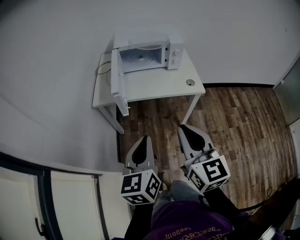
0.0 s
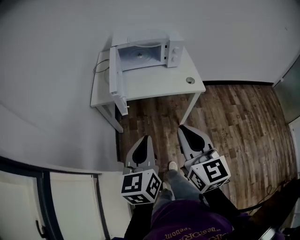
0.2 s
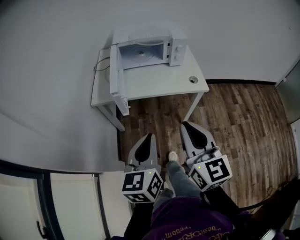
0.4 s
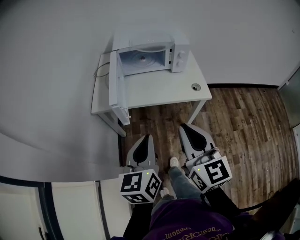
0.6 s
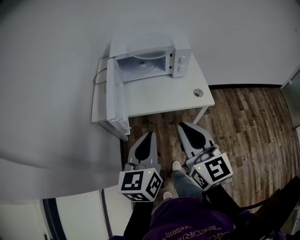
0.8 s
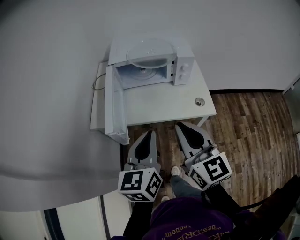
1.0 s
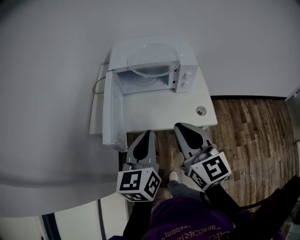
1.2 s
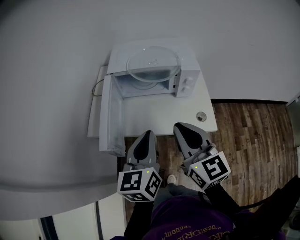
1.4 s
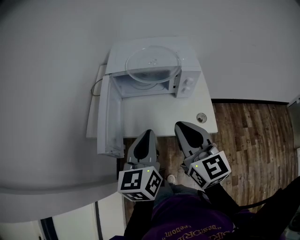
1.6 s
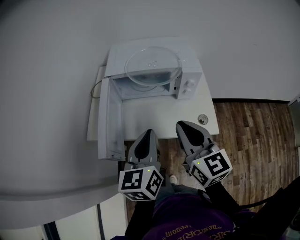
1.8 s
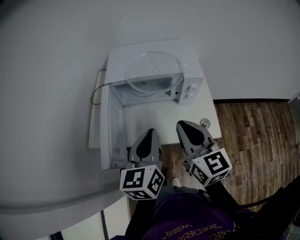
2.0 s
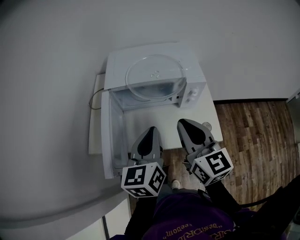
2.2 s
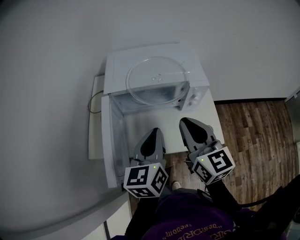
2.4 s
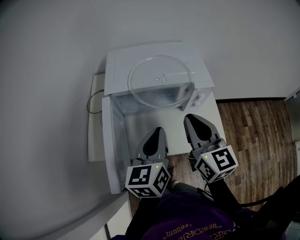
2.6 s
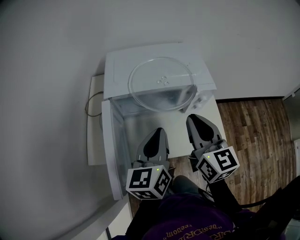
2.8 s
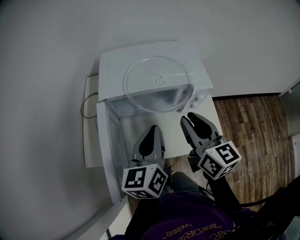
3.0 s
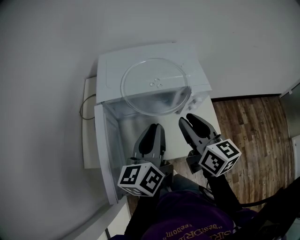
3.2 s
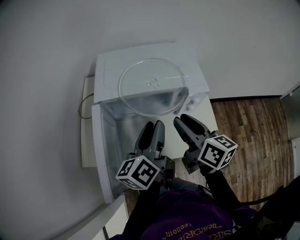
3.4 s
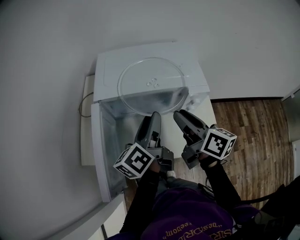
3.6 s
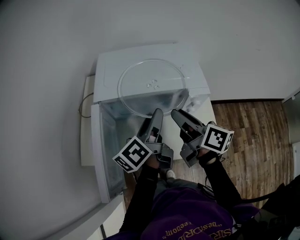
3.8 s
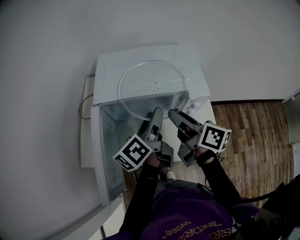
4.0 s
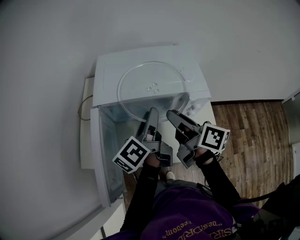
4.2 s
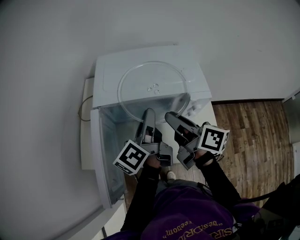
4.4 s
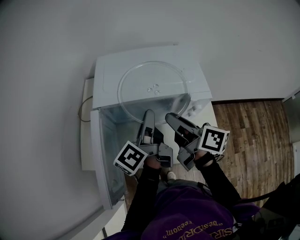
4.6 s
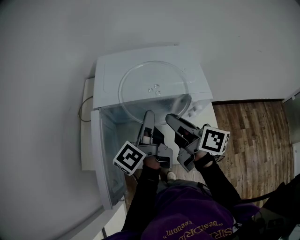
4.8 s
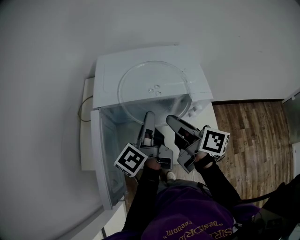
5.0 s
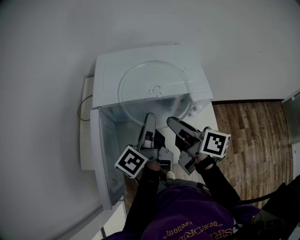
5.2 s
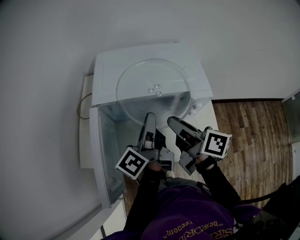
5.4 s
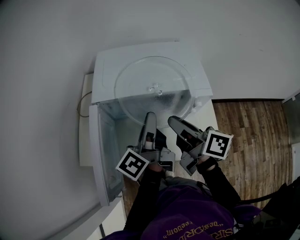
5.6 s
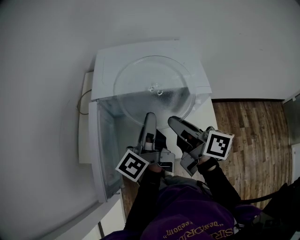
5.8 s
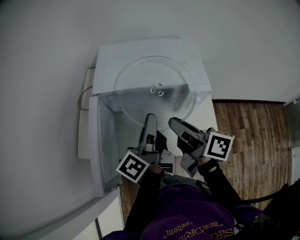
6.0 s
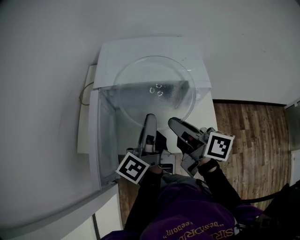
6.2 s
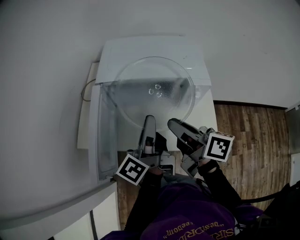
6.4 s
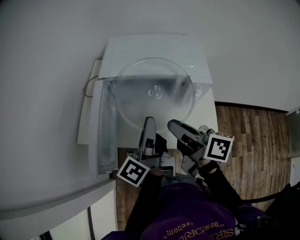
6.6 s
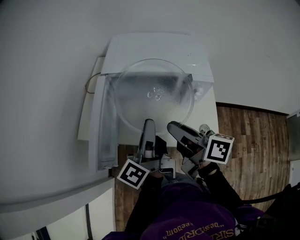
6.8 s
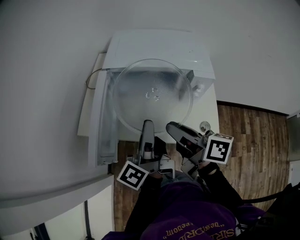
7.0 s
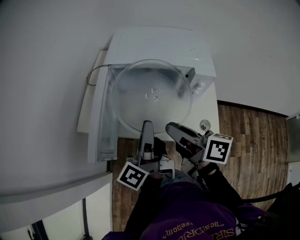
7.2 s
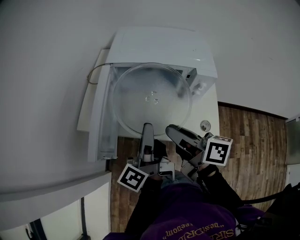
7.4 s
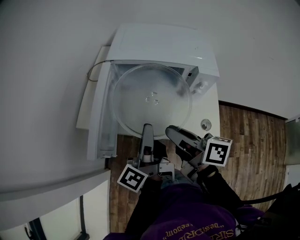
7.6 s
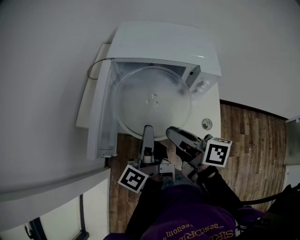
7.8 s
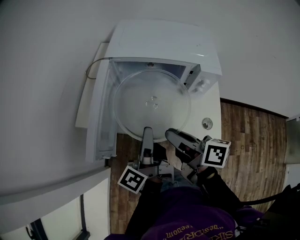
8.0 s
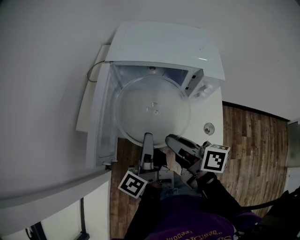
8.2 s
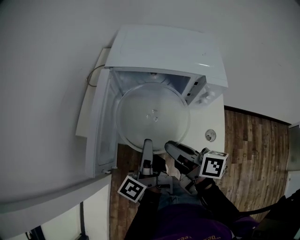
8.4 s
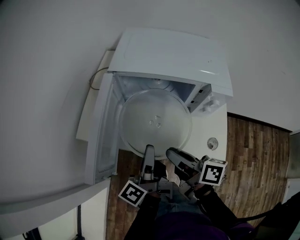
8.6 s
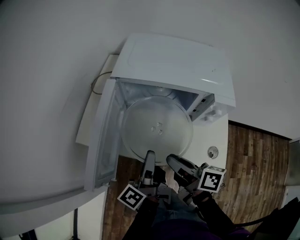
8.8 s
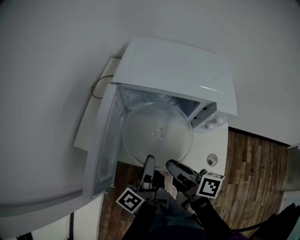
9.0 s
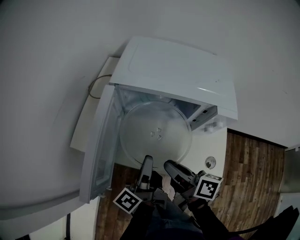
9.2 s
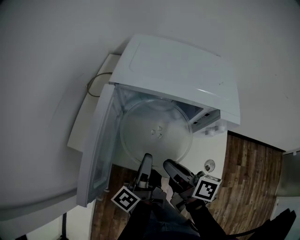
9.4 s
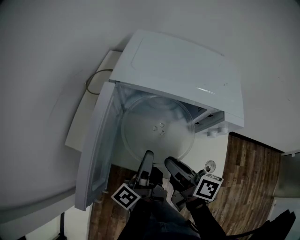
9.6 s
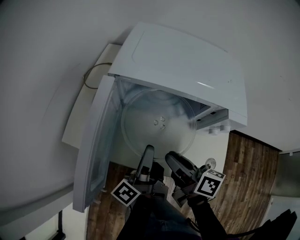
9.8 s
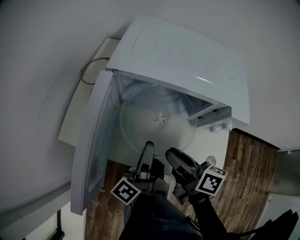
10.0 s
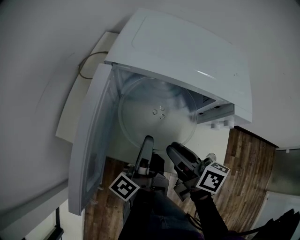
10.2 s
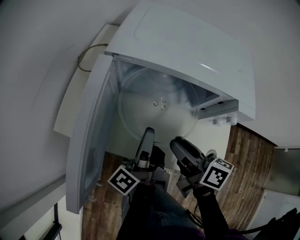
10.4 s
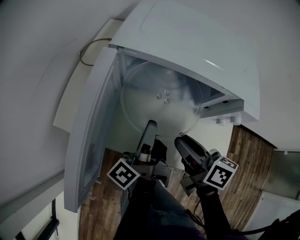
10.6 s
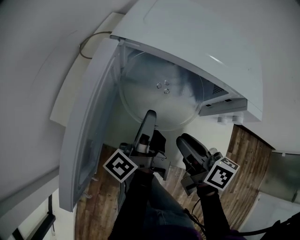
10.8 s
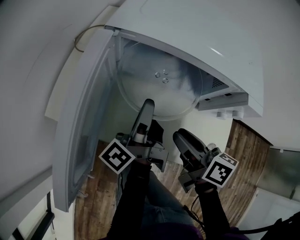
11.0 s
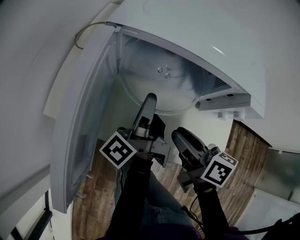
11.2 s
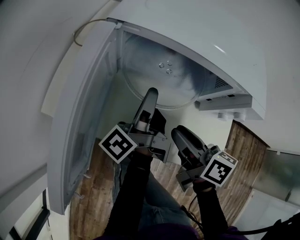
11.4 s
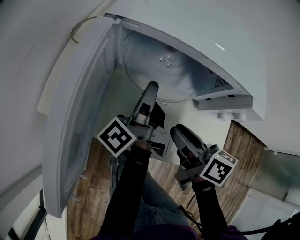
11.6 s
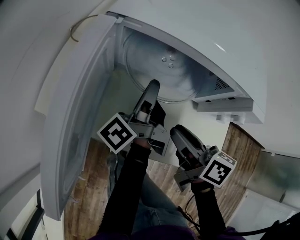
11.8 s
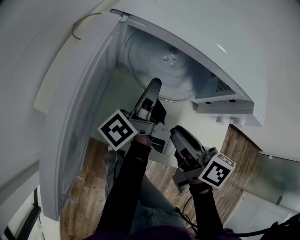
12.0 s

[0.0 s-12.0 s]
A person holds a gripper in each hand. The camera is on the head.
0.0 to 1.6 s: The two grippers go roughly 30 cm forward.
1.6 to 3.0 s: The grippers both shift forward by approximately 15 cm.
3.0 to 4.4 s: Both grippers travel together forward, some 10 cm. The left gripper turns by roughly 40 degrees, and opens its fingers. Meanwhile the right gripper swivels about 40 degrees.
4.4 to 6.0 s: Both grippers move backward, about 5 cm.
6.0 to 7.6 s: The grippers both shift backward and to the left by roughly 10 cm.
7.6 to 9.0 s: The two grippers go approximately 10 cm downward.
9.0 to 10.4 s: The two grippers go about 5 cm forward.
10.4 to 12.0 s: The left gripper is displaced forward by about 10 cm.

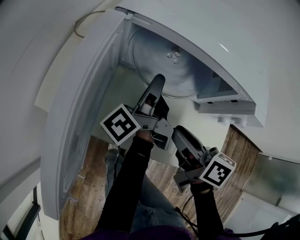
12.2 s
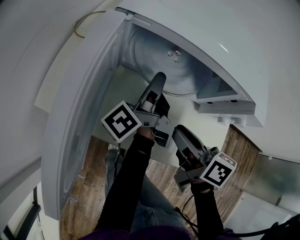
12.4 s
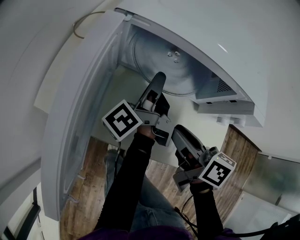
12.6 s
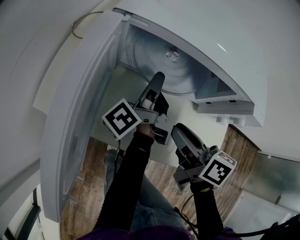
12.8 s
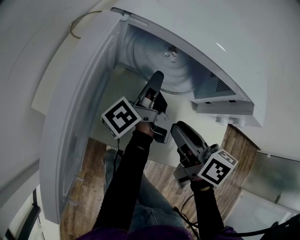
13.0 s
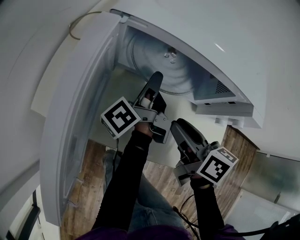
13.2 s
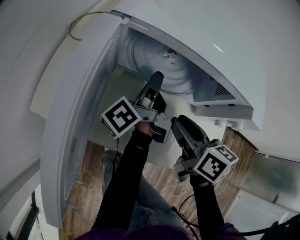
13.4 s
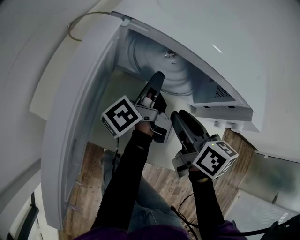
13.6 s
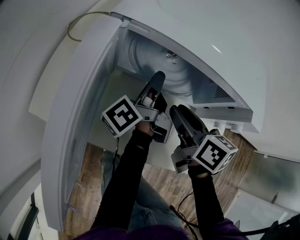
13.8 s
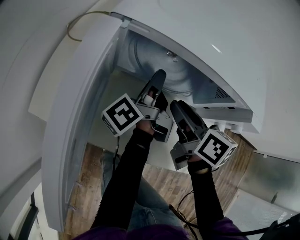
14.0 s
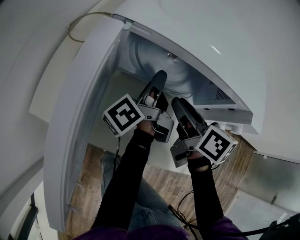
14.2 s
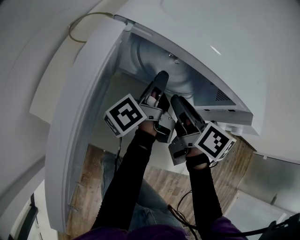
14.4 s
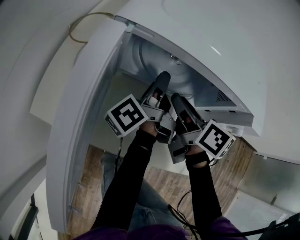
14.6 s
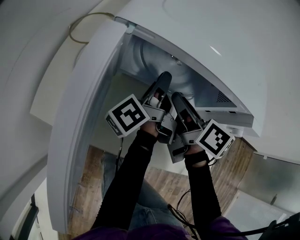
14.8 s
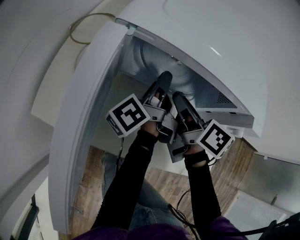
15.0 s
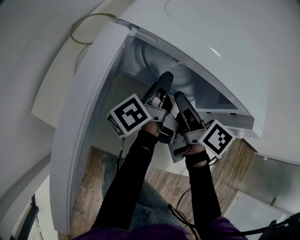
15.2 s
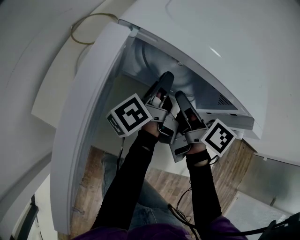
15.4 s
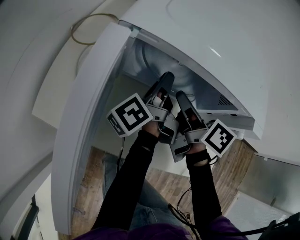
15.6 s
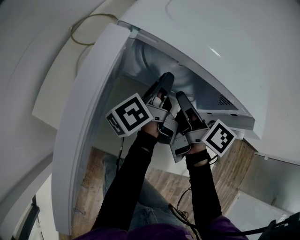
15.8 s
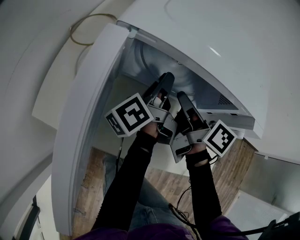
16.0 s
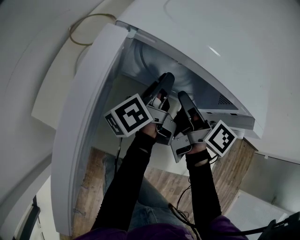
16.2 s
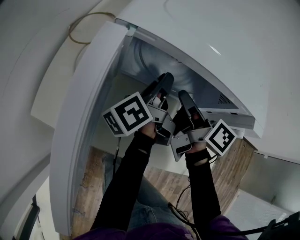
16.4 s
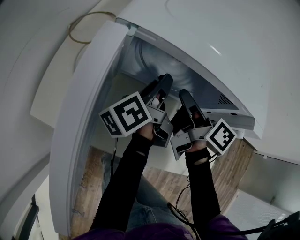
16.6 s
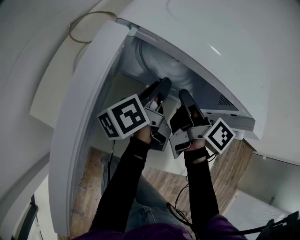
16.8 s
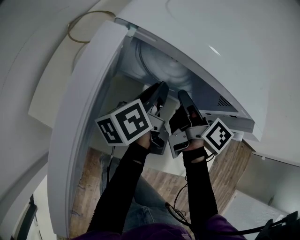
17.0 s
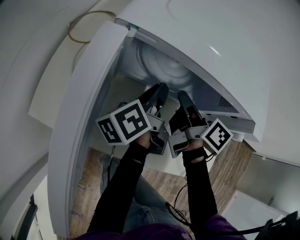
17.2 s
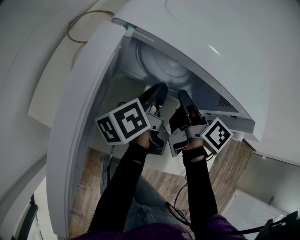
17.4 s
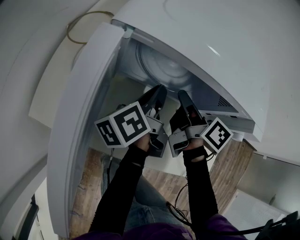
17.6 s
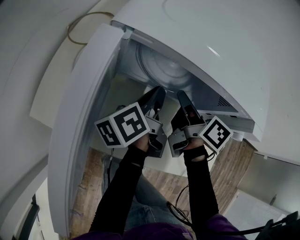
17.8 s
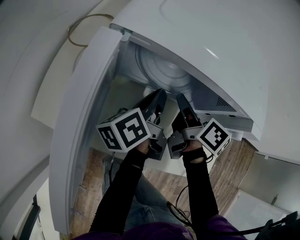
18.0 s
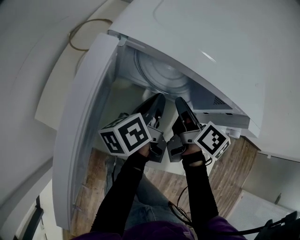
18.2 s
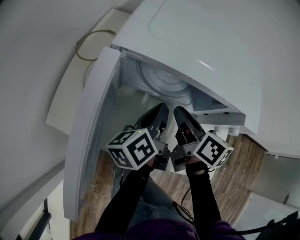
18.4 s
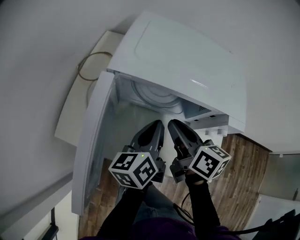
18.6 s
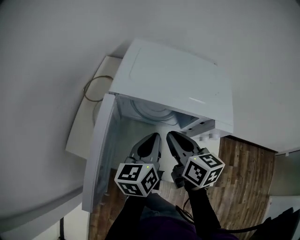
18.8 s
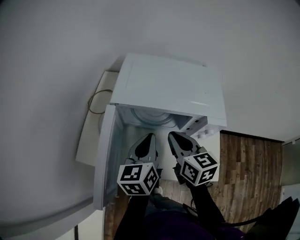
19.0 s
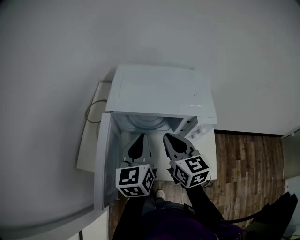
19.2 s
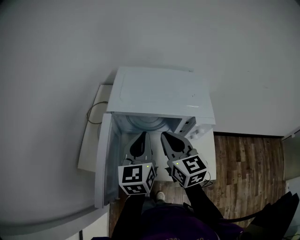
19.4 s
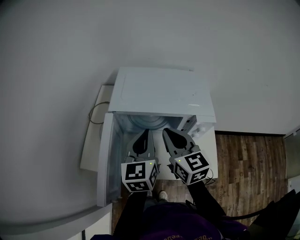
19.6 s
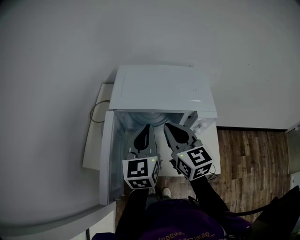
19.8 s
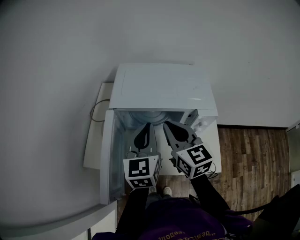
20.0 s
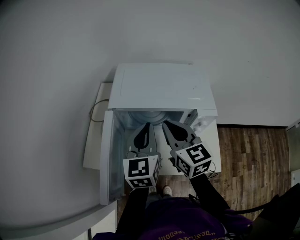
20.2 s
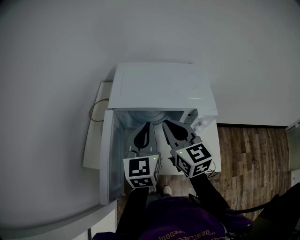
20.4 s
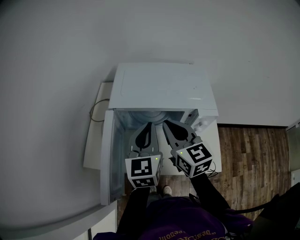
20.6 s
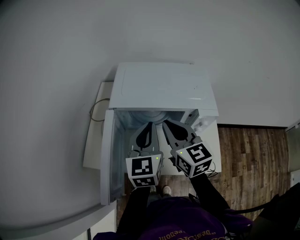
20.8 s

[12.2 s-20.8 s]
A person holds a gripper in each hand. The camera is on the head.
12.2 to 13.6 s: The right gripper travels forward by some 5 cm.
13.6 to 15.0 s: The right gripper goes about 5 cm forward.
15.0 to 16.6 s: The grippers move only a little.
16.6 to 18.0 s: The grippers make only small movements.
18.0 to 19.4 s: Both grippers travel together upward and backward, roughly 20 cm. The right gripper twists some 40 degrees counterclockwise, seen from behind, while the left gripper rolls clockwise, seen from behind, by some 60 degrees.
19.4 to 20.8 s: The grippers stay close to where they were, moving slightly.

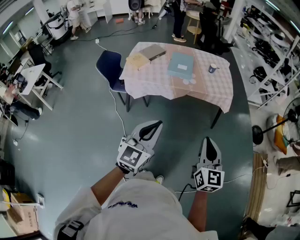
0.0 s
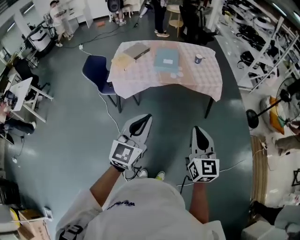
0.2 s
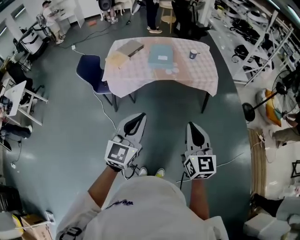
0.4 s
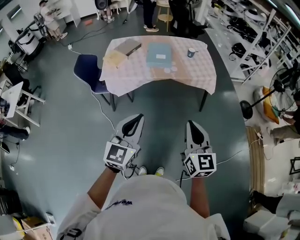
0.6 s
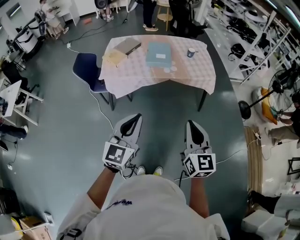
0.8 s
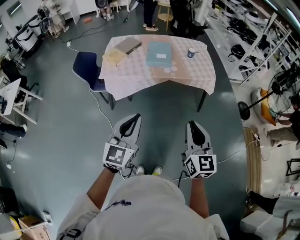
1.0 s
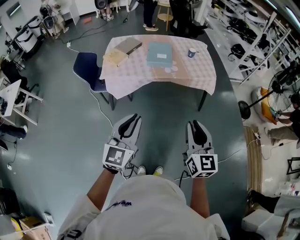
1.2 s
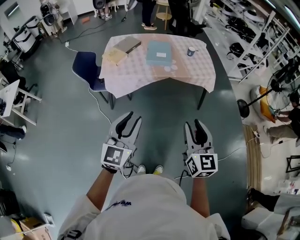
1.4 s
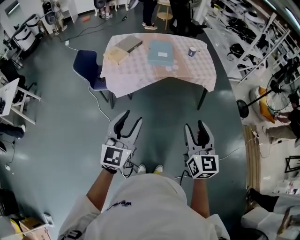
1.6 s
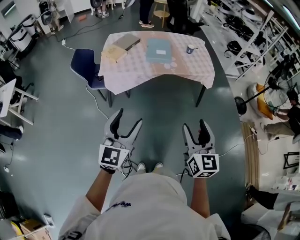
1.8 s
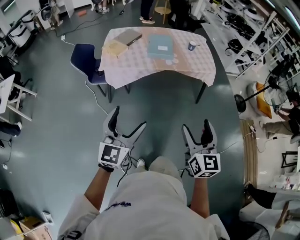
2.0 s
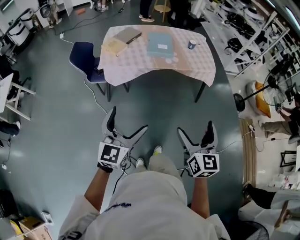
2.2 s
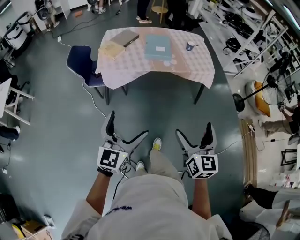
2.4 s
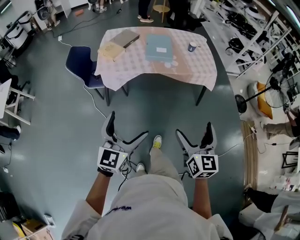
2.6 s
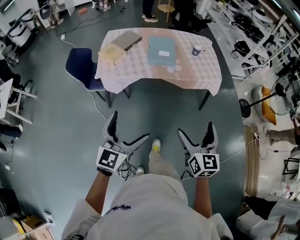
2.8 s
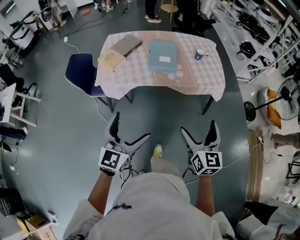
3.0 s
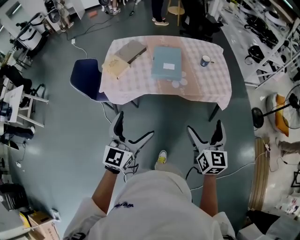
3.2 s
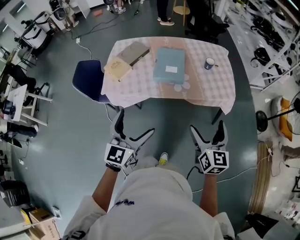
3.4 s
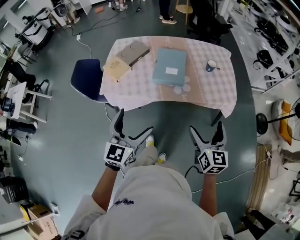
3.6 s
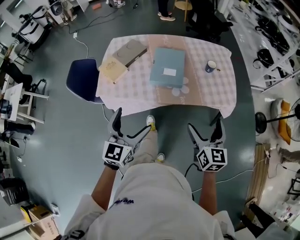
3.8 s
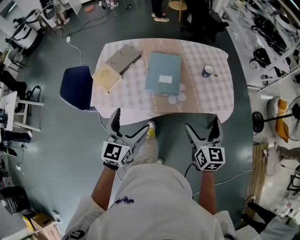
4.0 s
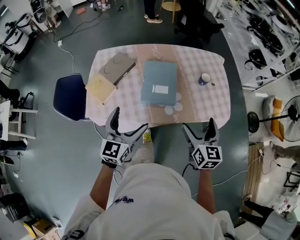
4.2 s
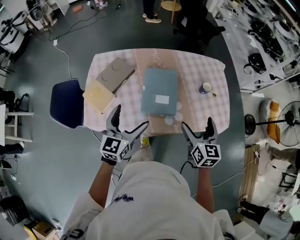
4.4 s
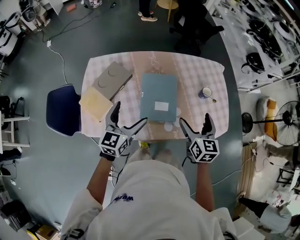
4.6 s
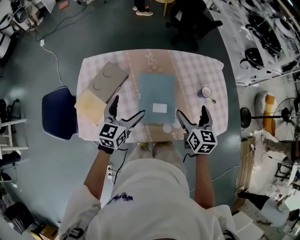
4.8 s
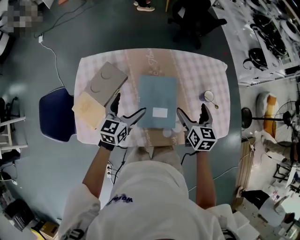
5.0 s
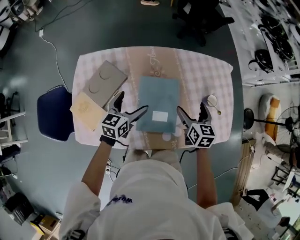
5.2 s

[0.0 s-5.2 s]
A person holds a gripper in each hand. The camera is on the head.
0.0 to 1.8 s: Both grippers move to the left, some 10 cm. The left gripper opens. The right gripper opens.
1.8 to 3.4 s: Both grippers travel together forward, roughly 30 cm. The right gripper opens up. Meanwhile the left gripper opens up.
3.4 to 5.2 s: The pair of grippers is taken forward, approximately 50 cm. The left gripper turns by approximately 30 degrees, while the right gripper rotates roughly 20 degrees.
